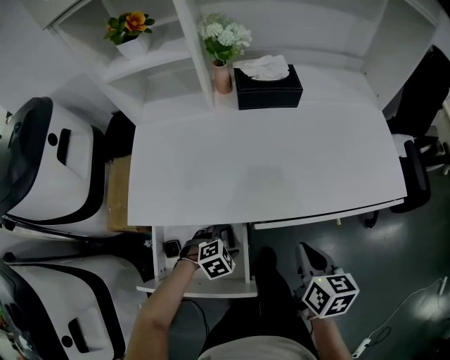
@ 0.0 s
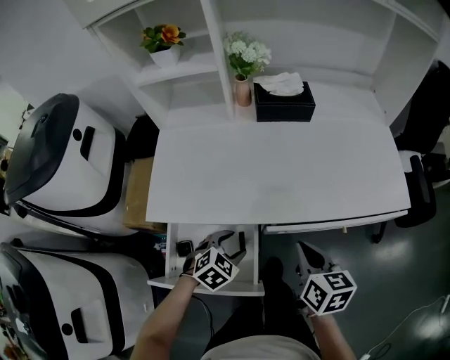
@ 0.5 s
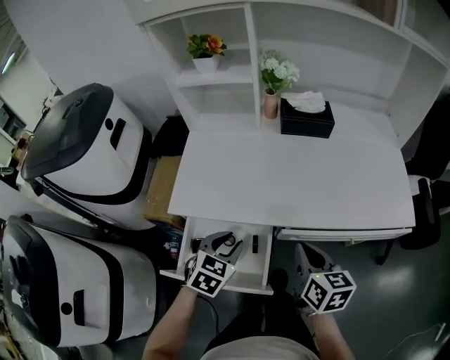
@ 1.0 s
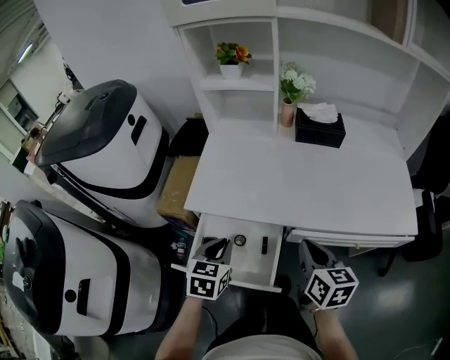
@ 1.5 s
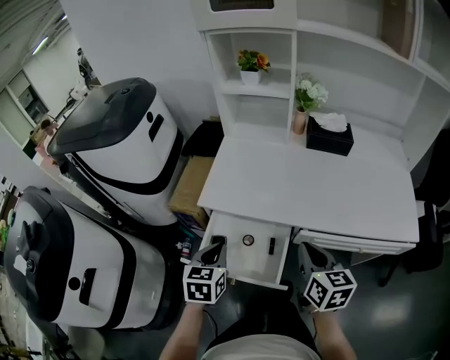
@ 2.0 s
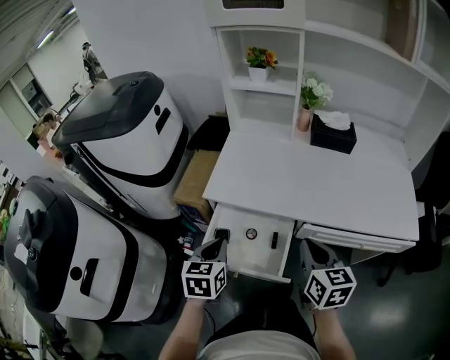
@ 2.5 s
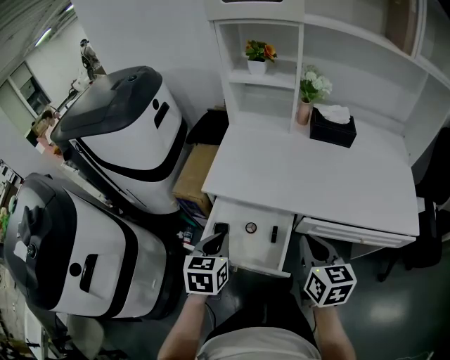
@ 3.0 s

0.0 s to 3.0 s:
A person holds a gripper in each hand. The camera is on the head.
0.0 to 1.5 s: The left gripper travels upward by about 20 cm, rotates some 70 degrees, and closes. Meanwhile the right gripper moves approximately 10 cm.
1.5 to 3.0 s: The left gripper travels to the left by roughly 5 cm; the right gripper moves approximately 5 cm.

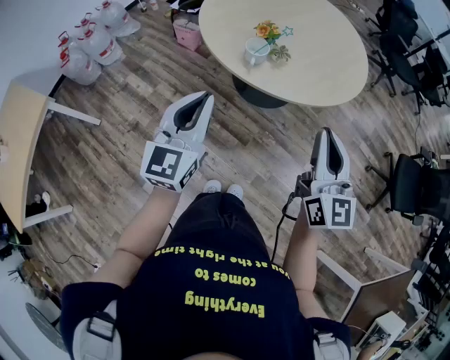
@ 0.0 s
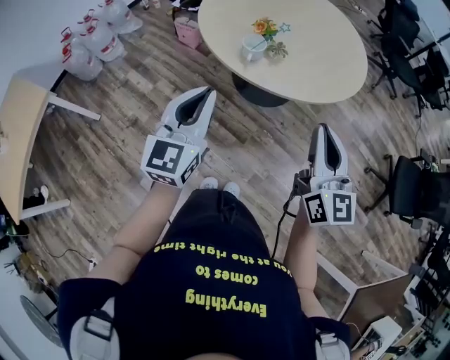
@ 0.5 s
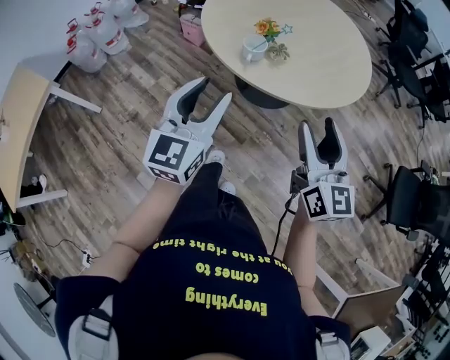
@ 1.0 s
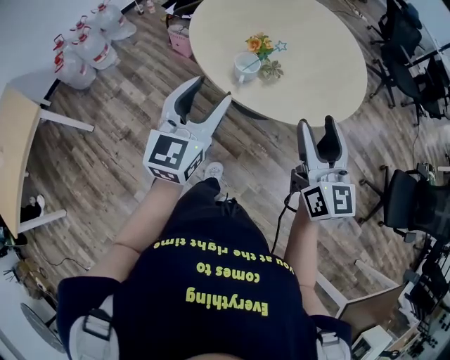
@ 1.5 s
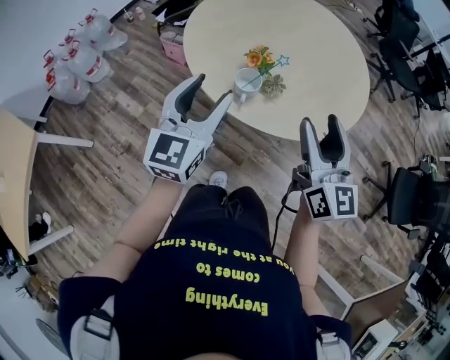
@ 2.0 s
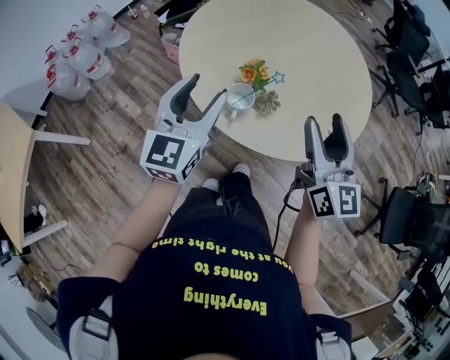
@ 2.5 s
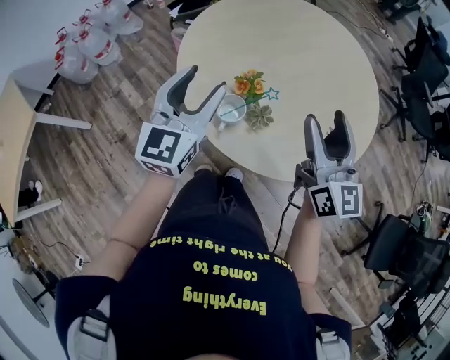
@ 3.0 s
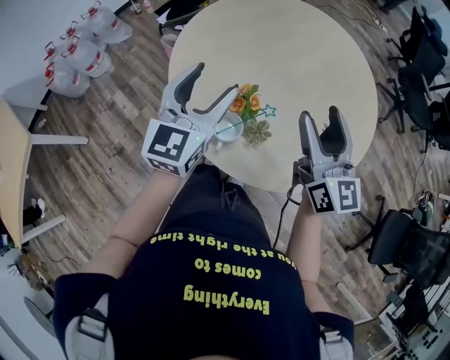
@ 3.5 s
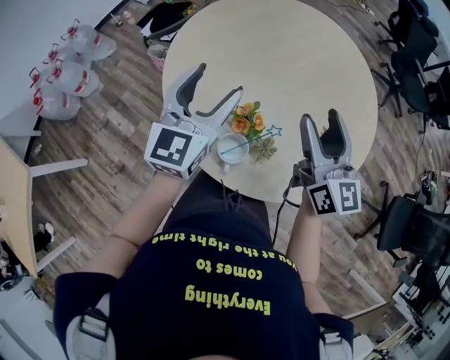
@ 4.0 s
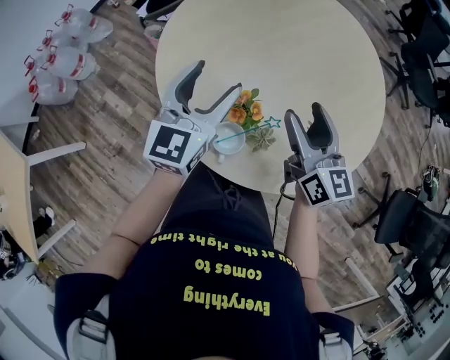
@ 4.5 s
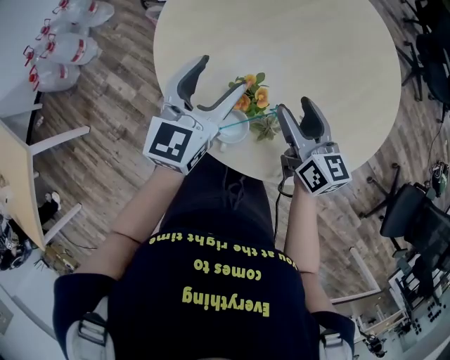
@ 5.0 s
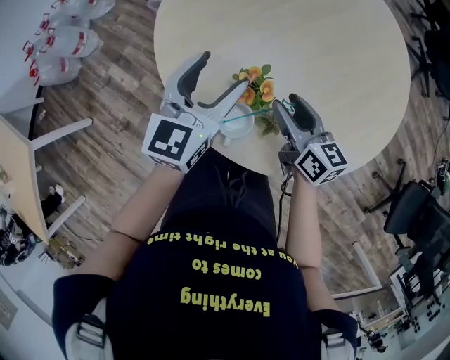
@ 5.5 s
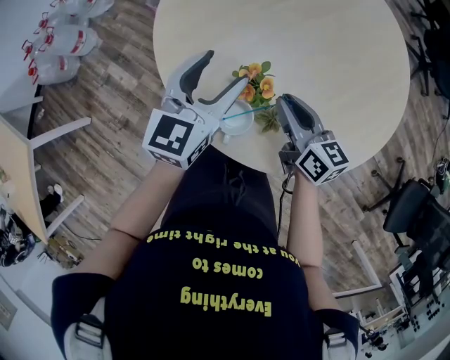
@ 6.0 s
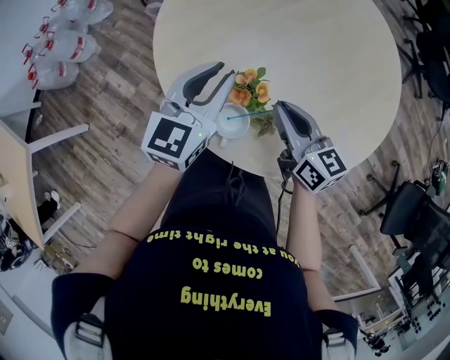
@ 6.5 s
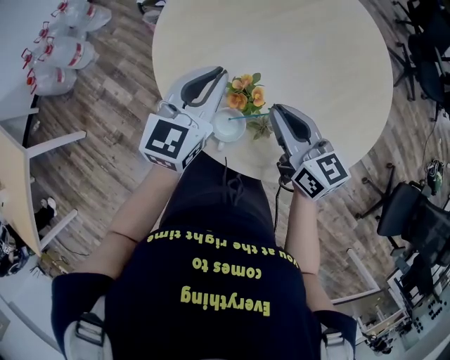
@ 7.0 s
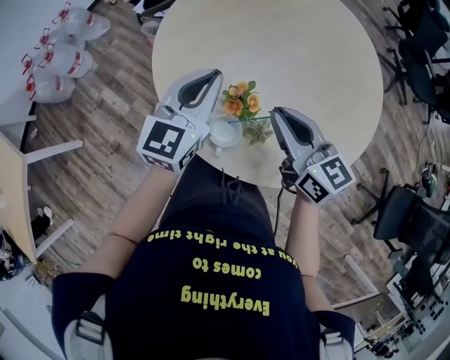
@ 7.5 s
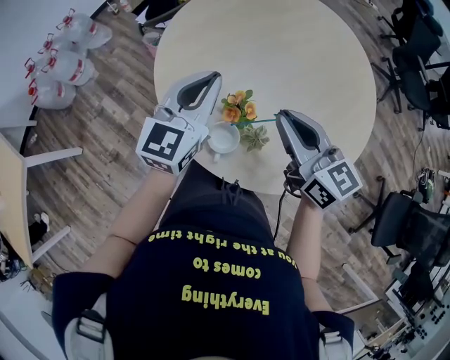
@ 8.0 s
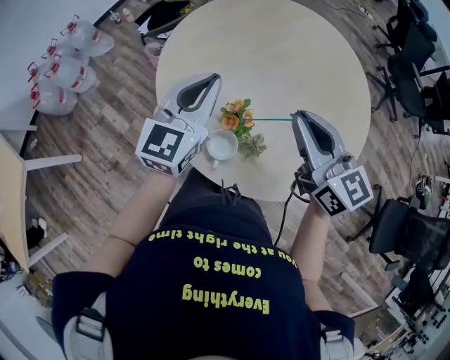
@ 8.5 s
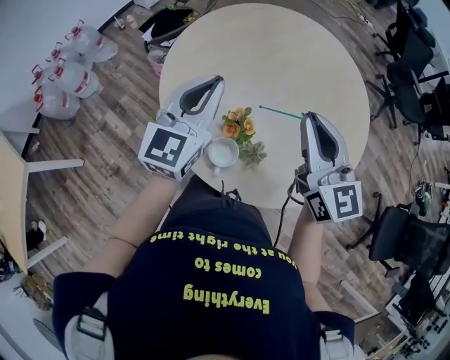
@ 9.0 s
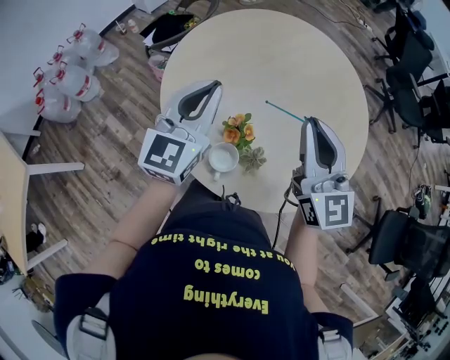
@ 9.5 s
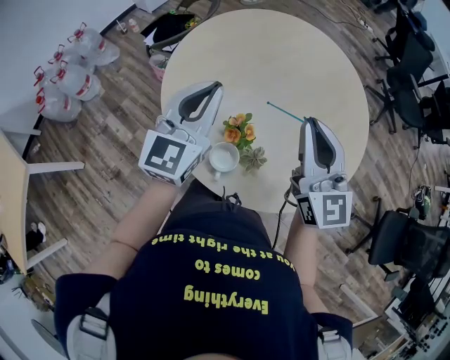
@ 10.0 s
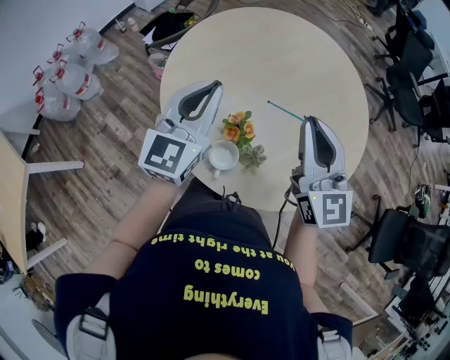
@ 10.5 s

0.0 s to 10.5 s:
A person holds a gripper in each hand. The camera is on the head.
0.0 to 2.0 s: Both grippers travel together forward, roughly 20 cm. The left gripper opens; the right gripper opens its fingers.
2.0 to 4.0 s: Both grippers travel together forward, some 30 cm.
4.0 to 6.5 s: The right gripper goes roughly 15 cm downward, changes its angle by some 30 degrees, and closes. Meanwhile the left gripper travels downward by approximately 10 cm, and closes its fingers.
6.5 to 8.5 s: The right gripper goes approximately 20 cm upward, and swivels roughly 20 degrees; the left gripper is displaced upward by about 10 cm.
8.5 to 10.5 s: The right gripper swivels roughly 20 degrees.

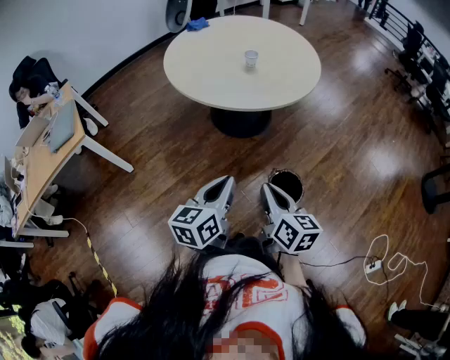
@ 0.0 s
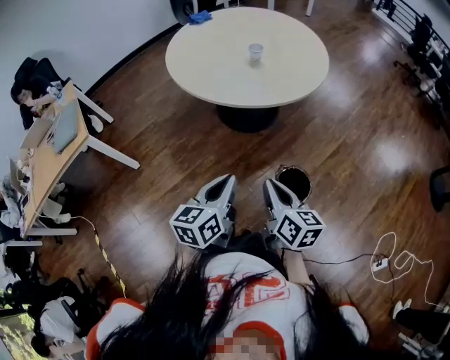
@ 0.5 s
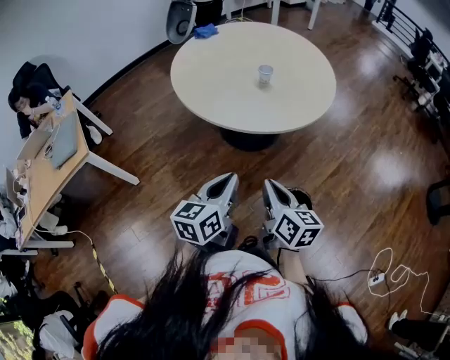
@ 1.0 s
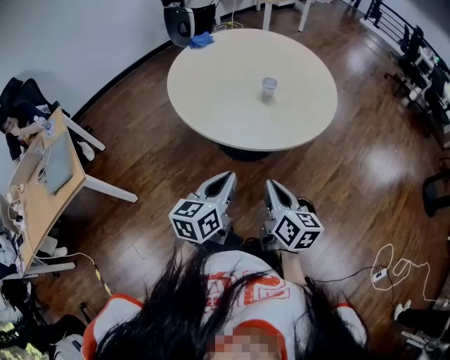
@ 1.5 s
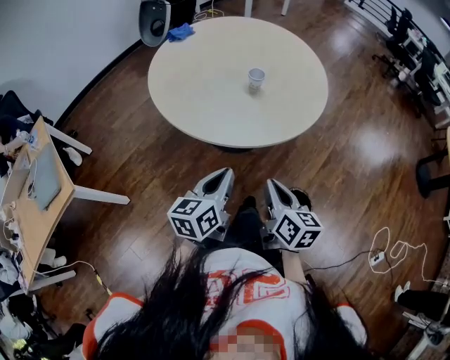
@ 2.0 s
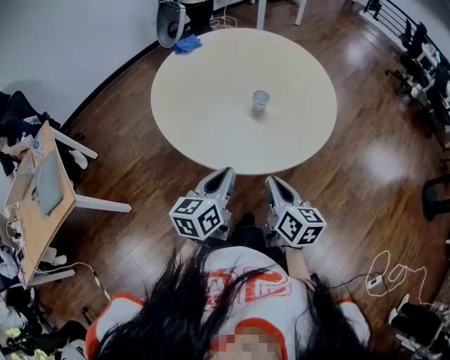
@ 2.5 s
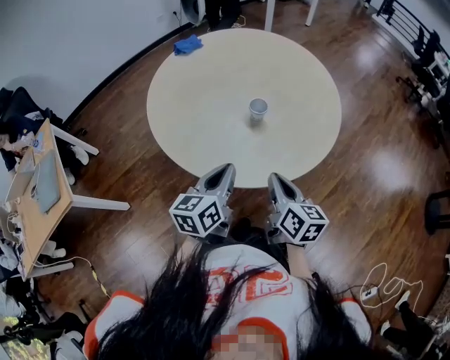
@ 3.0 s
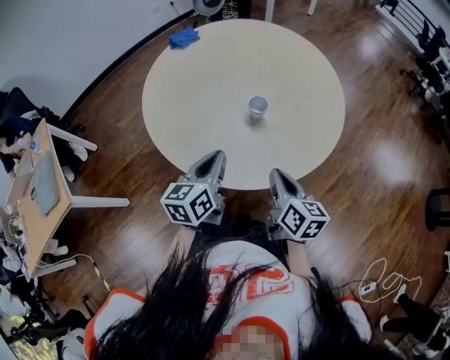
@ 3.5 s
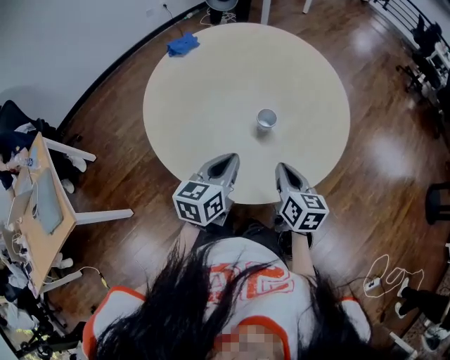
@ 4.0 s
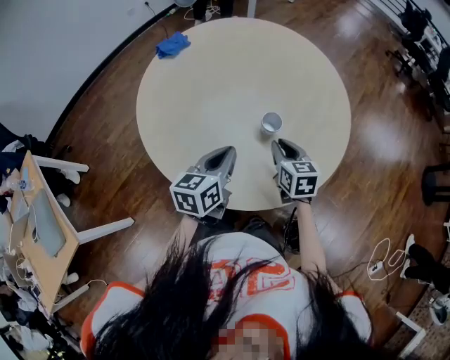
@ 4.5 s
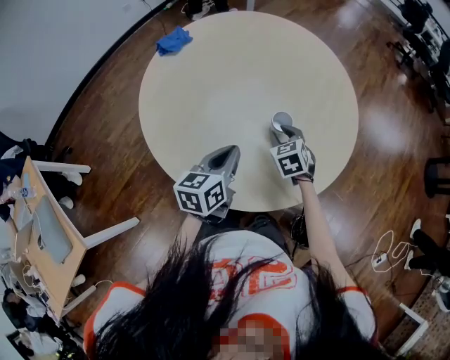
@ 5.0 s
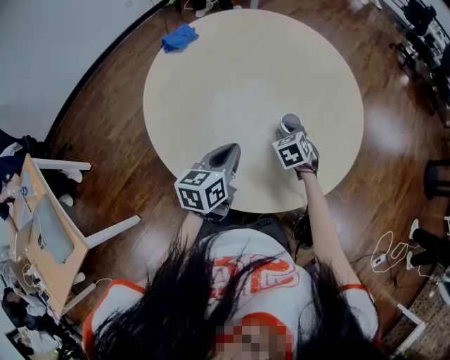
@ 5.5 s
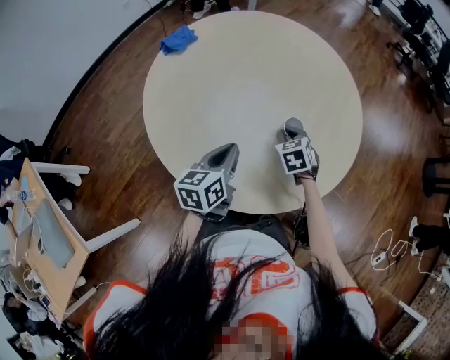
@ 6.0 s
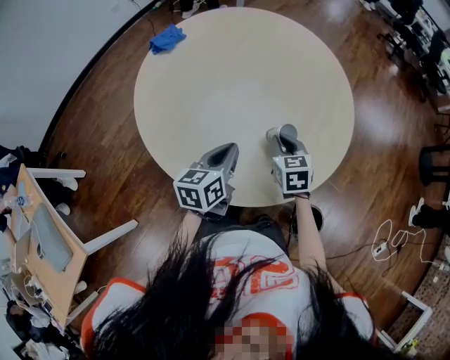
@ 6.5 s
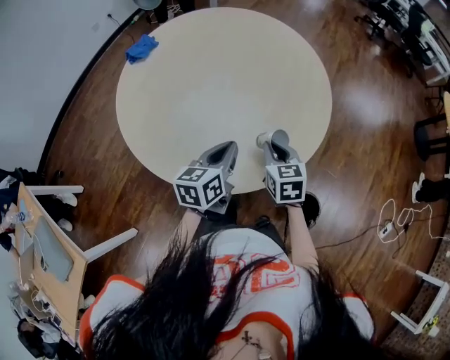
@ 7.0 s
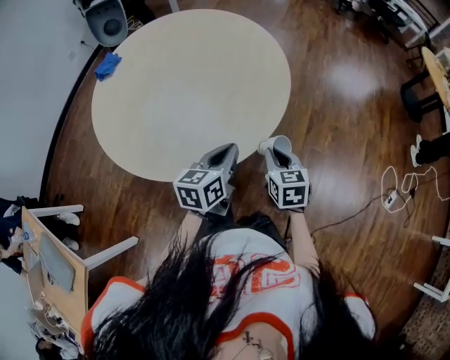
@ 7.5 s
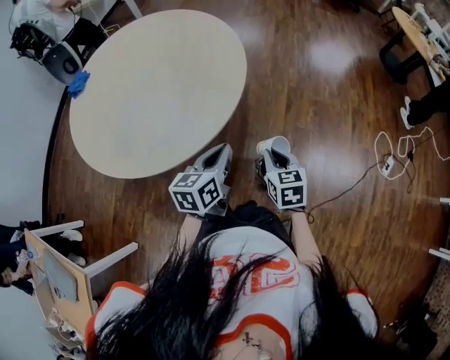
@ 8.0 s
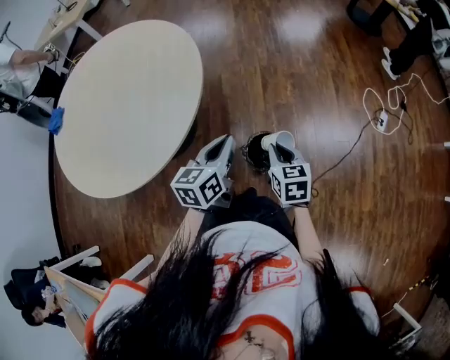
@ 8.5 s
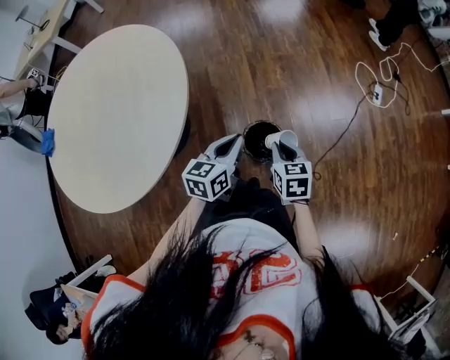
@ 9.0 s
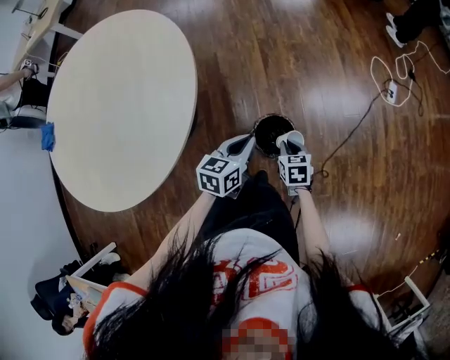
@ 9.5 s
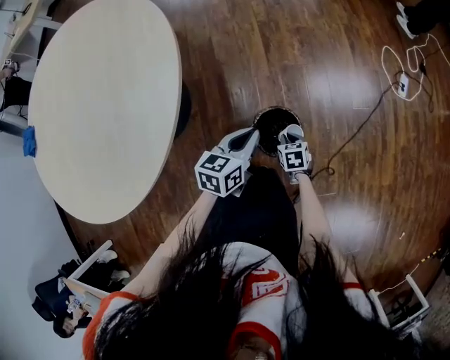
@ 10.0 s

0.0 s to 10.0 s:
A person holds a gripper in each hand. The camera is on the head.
0.0 to 2.0 s: The two grippers go roughly 20 cm forward.
2.0 to 4.0 s: Both grippers travel together forward, roughly 25 cm.
4.0 to 6.0 s: The left gripper shifts roughly 10 cm to the left and forward, while the right gripper shifts some 20 cm forward, downward and to the left, turns by about 40 degrees, and opens and closes again.
6.0 to 8.0 s: The grippers both shift to the right and backward by about 35 cm. The left gripper rotates some 20 degrees. Meanwhile the right gripper rotates some 40 degrees.
8.0 to 10.0 s: The right gripper goes about 35 cm downward and to the right, and turns by some 30 degrees; the left gripper shifts roughly 25 cm downward and to the right, and changes its angle by about 30 degrees.

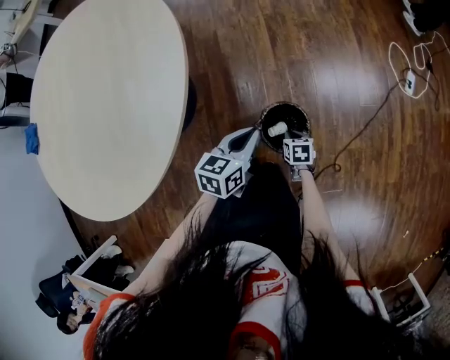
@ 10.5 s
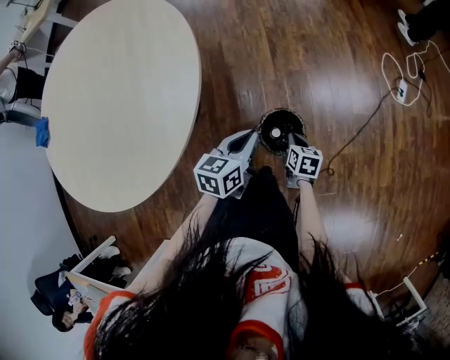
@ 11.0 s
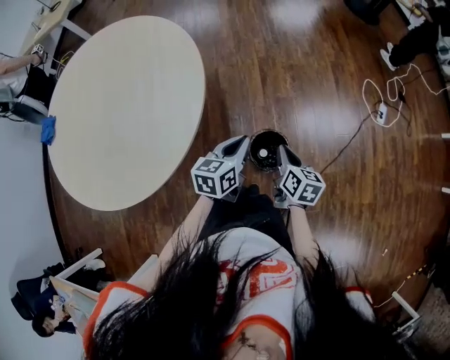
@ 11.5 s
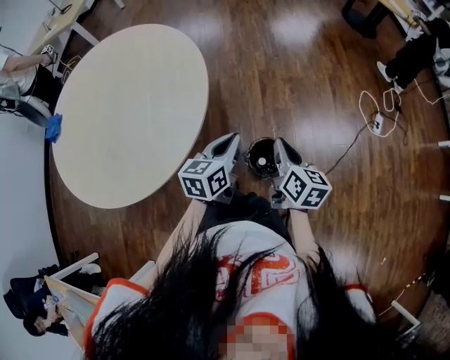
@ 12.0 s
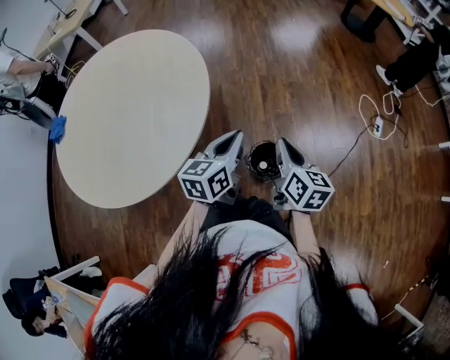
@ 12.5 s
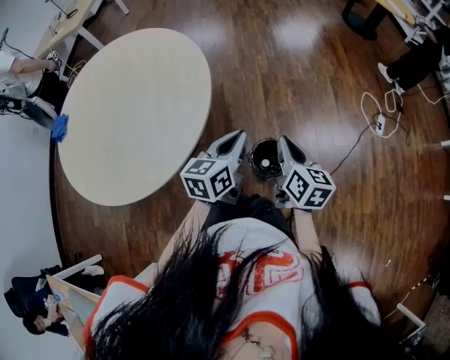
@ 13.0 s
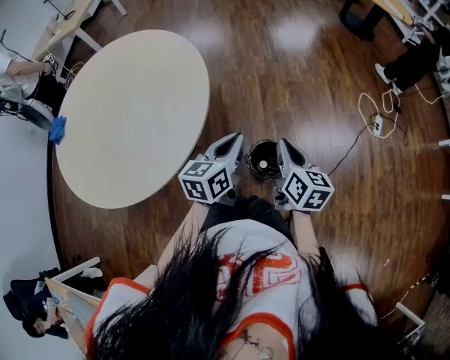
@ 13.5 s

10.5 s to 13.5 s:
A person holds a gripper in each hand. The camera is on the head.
10.5 to 12.0 s: The left gripper goes roughly 20 cm upward. The right gripper goes roughly 40 cm upward, and tilts its fingers roughly 40 degrees upward.
12.0 to 13.5 s: There are only small adjustments of the grippers.
